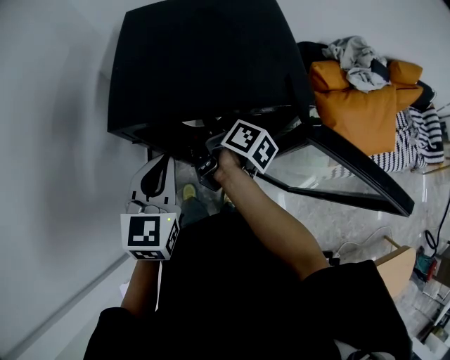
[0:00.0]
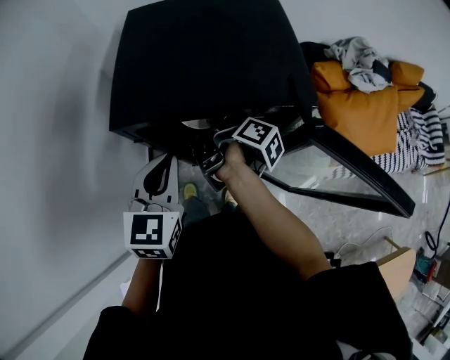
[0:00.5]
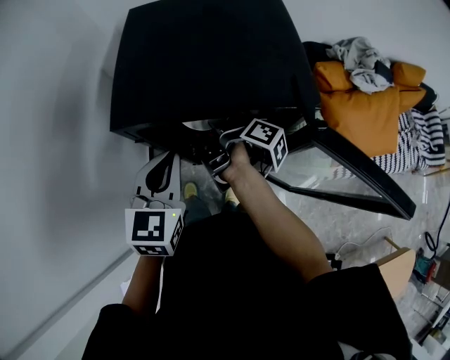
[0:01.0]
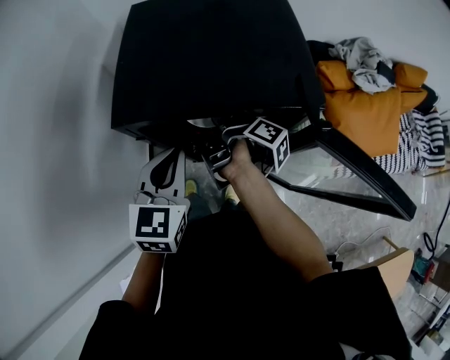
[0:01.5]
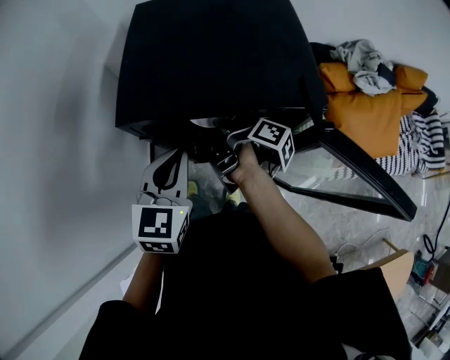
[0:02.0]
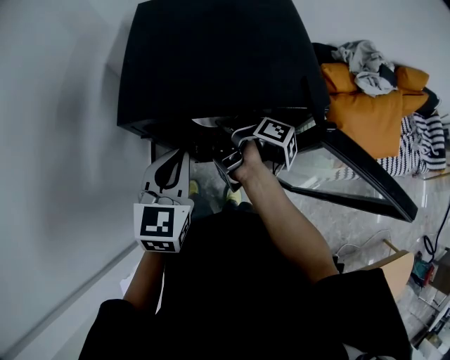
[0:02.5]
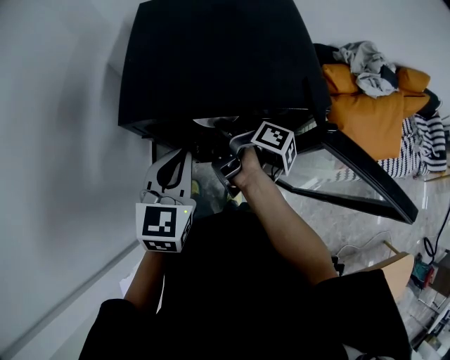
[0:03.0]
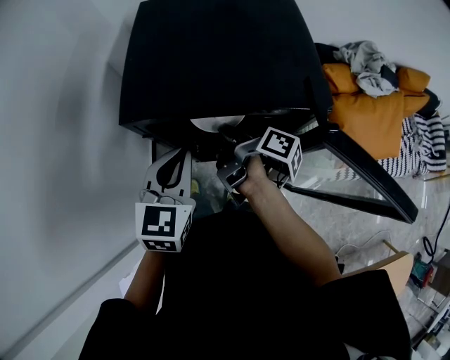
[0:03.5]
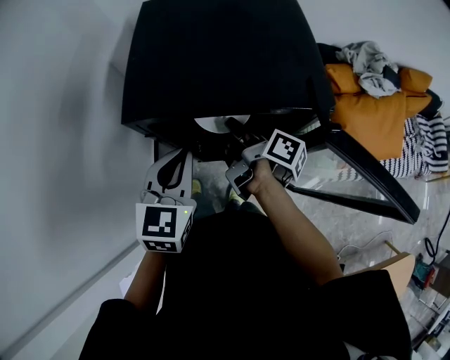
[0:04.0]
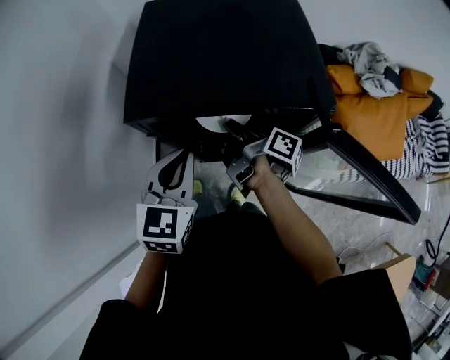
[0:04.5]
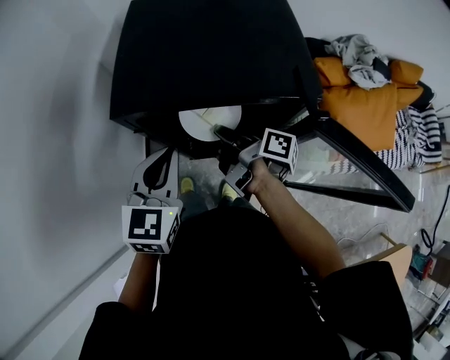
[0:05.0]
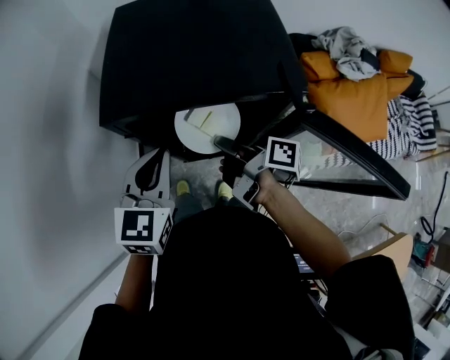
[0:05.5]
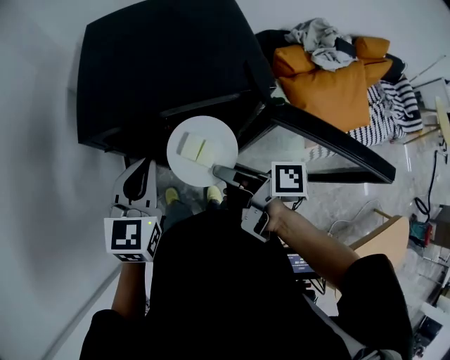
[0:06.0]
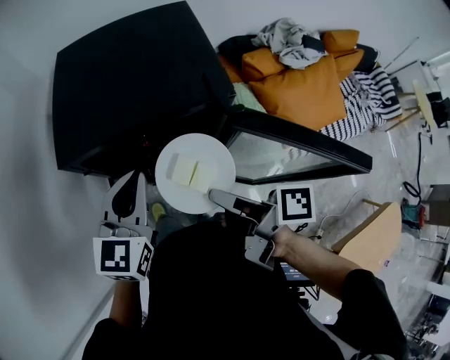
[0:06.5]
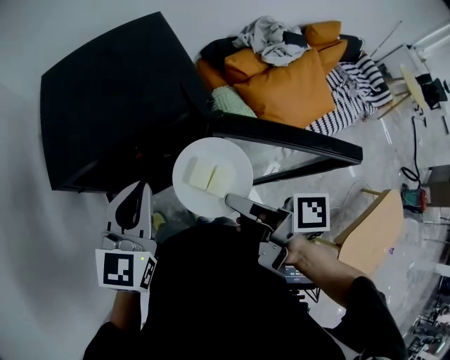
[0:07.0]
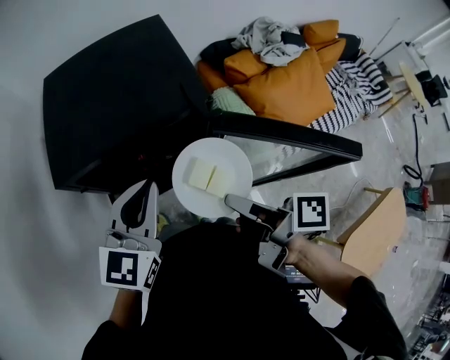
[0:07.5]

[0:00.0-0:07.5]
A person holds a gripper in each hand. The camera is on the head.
0:00.0 to 0:02.0: The right gripper rotates approximately 20 degrees.
0:02.0 to 0:04.0: The grippers stay close to where they were, moving slightly.
0:04.0 to 0:05.5: The right gripper goes about 5 cm backward.
0:05.5 to 0:07.5: The left gripper is displaced to the right and upward by some 10 cm, and swivels some 20 degrees. The right gripper is displaced backward, upward and to the right by roughly 20 cm.

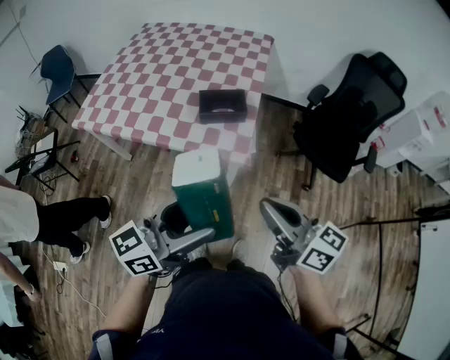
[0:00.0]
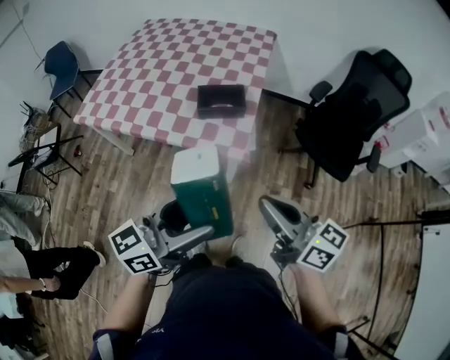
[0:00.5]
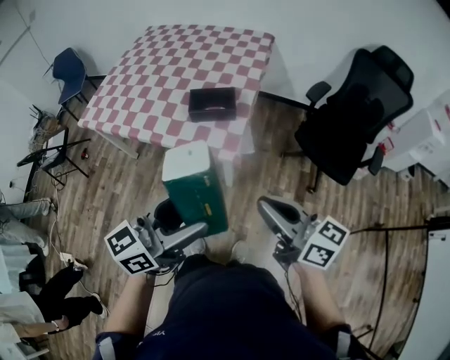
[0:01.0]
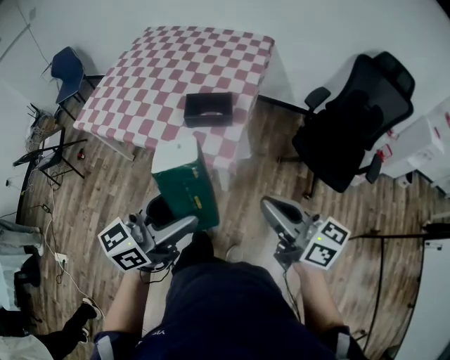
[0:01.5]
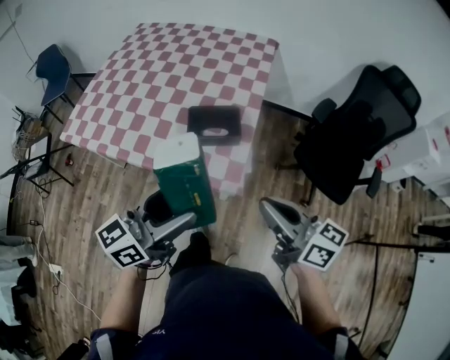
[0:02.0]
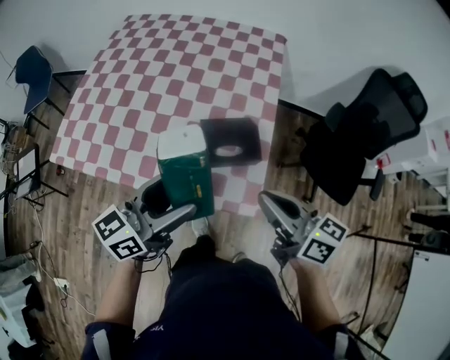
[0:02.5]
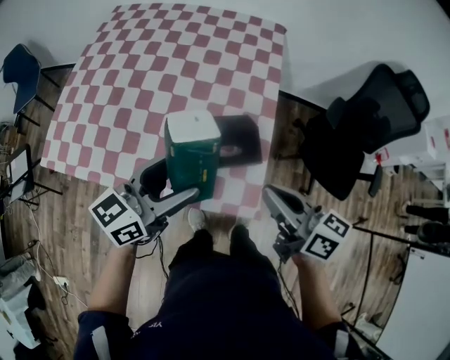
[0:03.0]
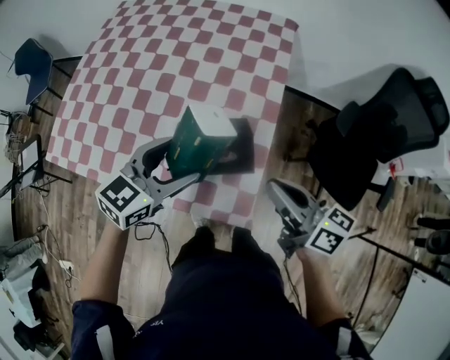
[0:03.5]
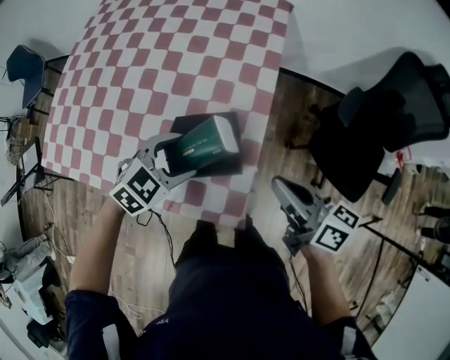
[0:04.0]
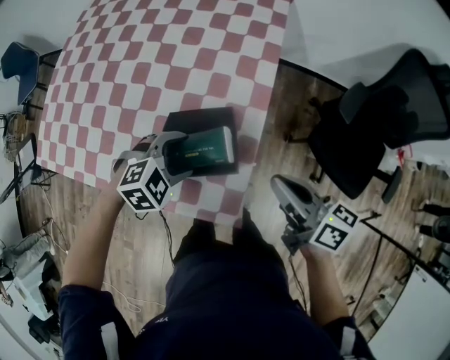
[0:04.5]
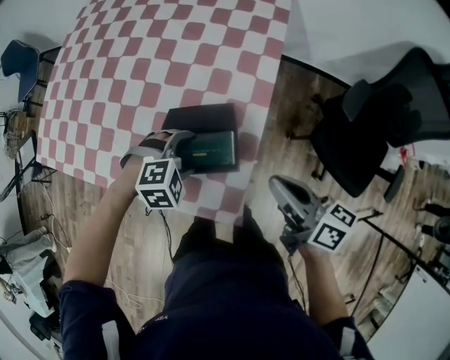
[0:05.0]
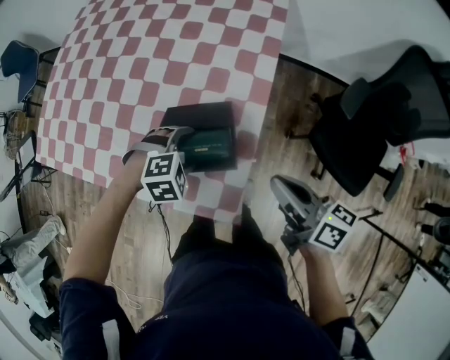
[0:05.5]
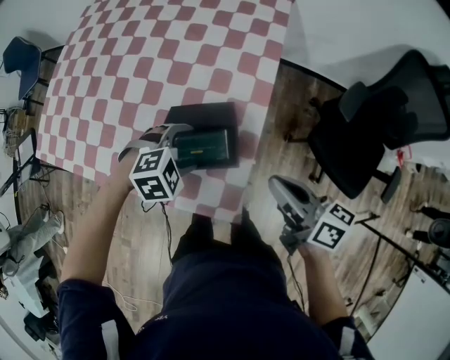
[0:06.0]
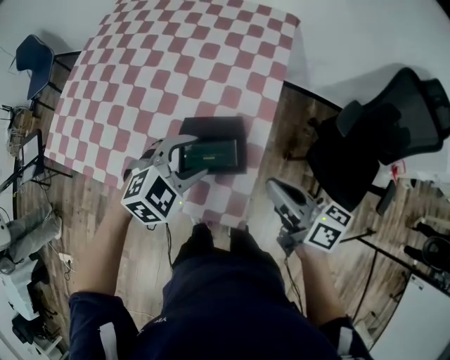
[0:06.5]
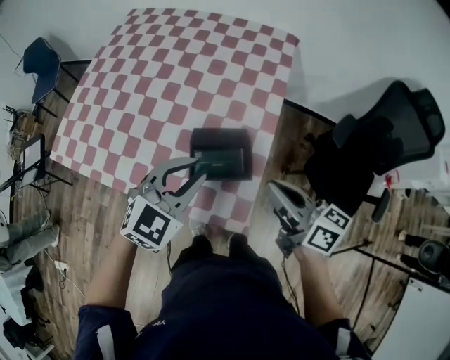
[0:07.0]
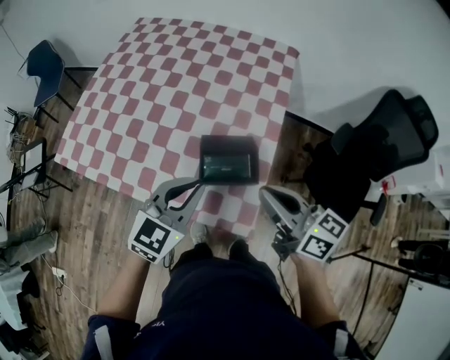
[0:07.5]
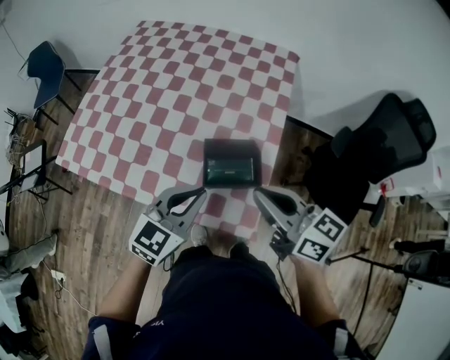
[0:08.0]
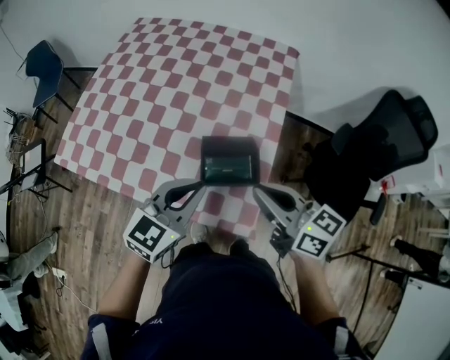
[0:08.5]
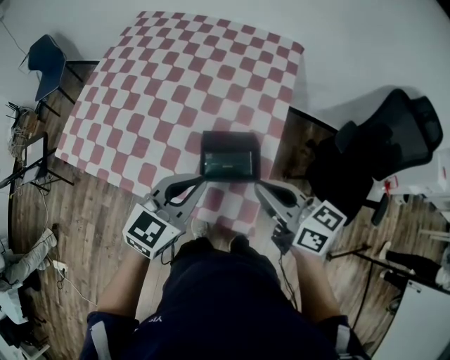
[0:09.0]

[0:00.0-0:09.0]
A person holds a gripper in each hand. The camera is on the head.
0:00.0 to 0:02.0: The grippers both shift forward by roughly 15 cm.
0:02.0 to 0:04.5: Both grippers move forward and downward, about 35 cm. The left gripper angles its fingers downward, by about 60 degrees.
0:04.5 to 0:07.0: The left gripper travels upward by about 15 cm, tilts its fingers about 30 degrees upward, and closes up, while the right gripper heads upward and to the left, covering some 10 cm.
0:07.0 to 0:09.0: The right gripper is displaced to the left by approximately 5 cm; the left gripper changes its angle by some 20 degrees.

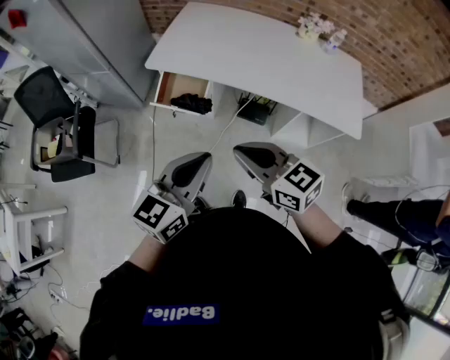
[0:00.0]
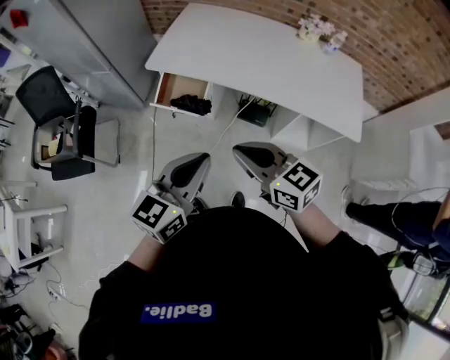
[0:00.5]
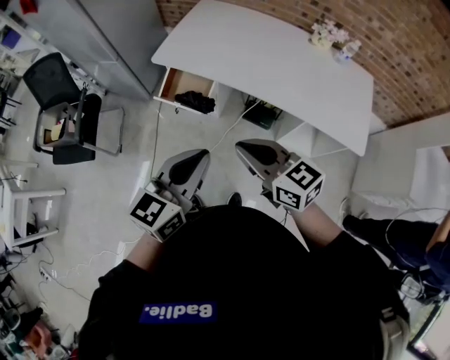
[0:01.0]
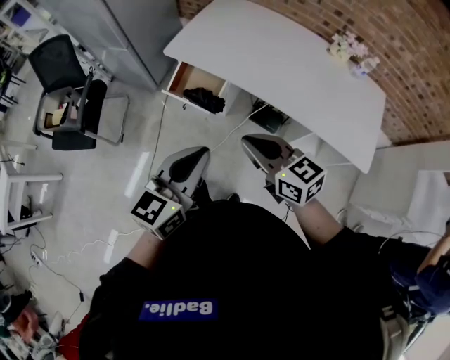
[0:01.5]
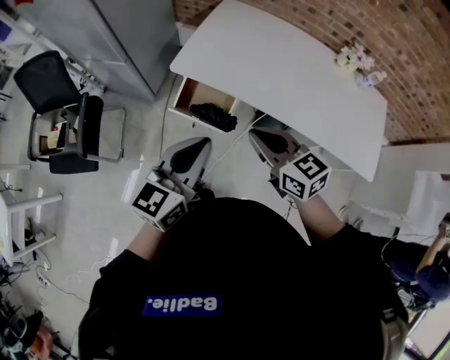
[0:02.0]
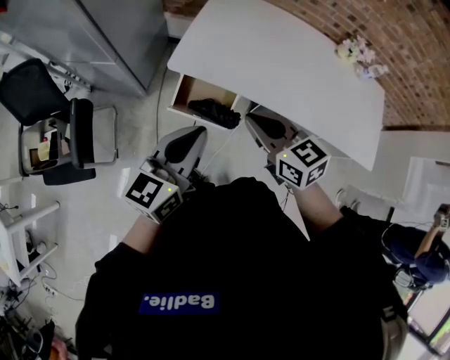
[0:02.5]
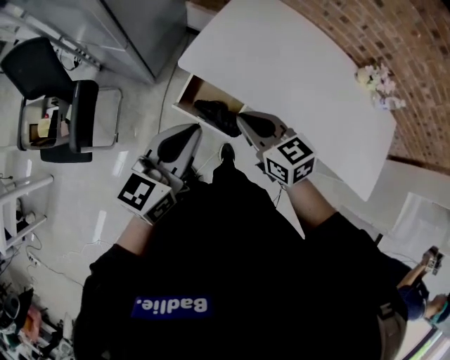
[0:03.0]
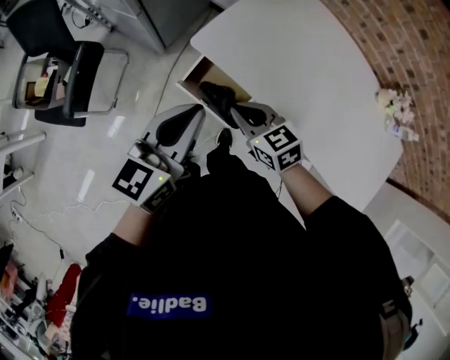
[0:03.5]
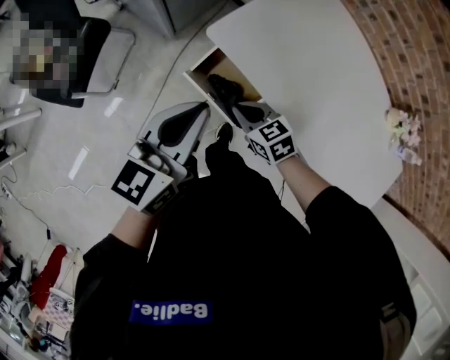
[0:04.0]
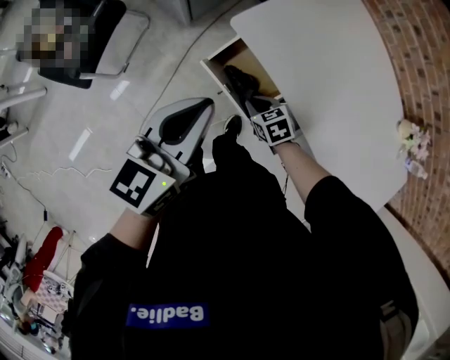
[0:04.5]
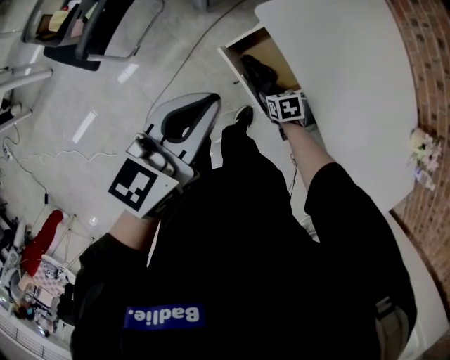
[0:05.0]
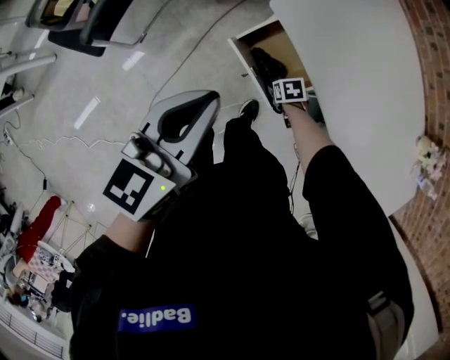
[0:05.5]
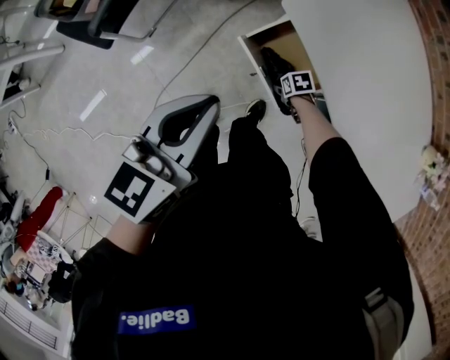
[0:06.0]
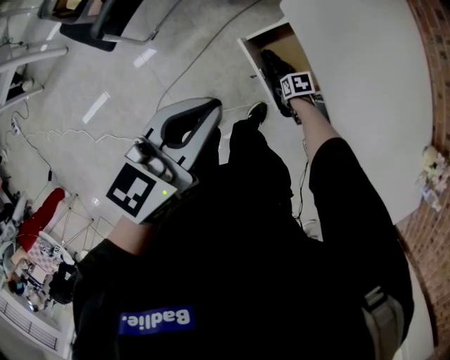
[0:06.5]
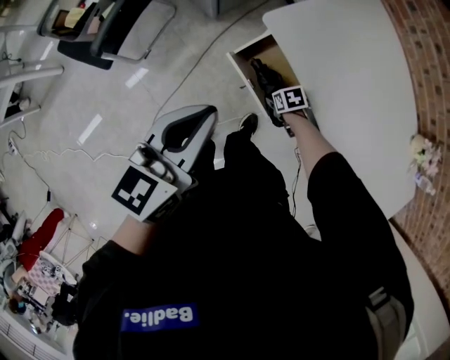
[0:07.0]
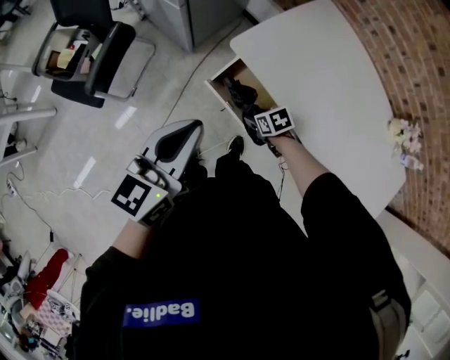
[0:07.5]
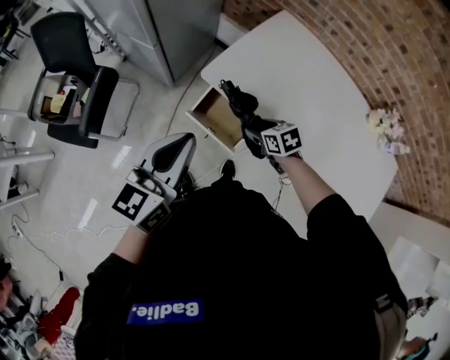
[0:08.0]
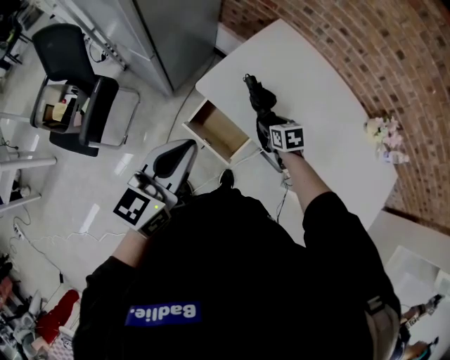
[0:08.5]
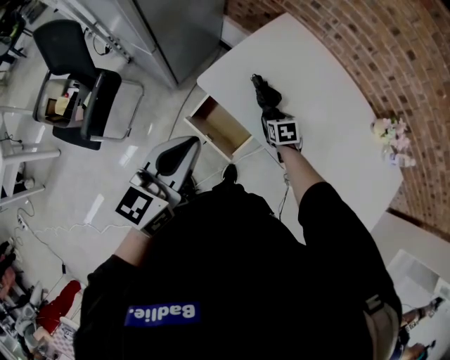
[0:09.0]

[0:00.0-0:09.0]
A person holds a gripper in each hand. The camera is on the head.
0:00.0 to 0:02.0: The left gripper travels forward and to the left by roughly 20 cm. Meanwhile the right gripper moves forward, some 20 cm.
0:02.0 to 0:04.5: The left gripper shifts by some 20 cm, and turns by about 30 degrees, while the right gripper travels downward by about 35 cm, and tips its fingers downward by roughly 40 degrees.
0:04.5 to 0:07.0: The left gripper moves approximately 5 cm. Meanwhile the right gripper travels downward by approximately 10 cm, turns by about 20 degrees, and opens up.
0:07.0 to 0:09.0: The left gripper ends up about 15 cm from where it was. Meanwhile the right gripper heads upward, covering roughly 20 cm, and turns by about 30 degrees.

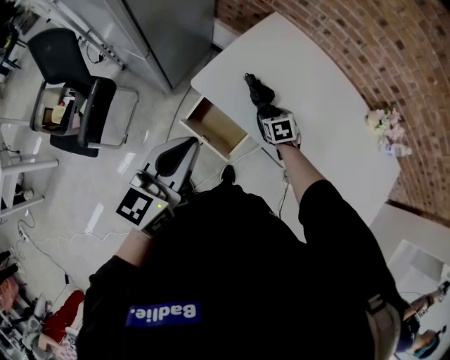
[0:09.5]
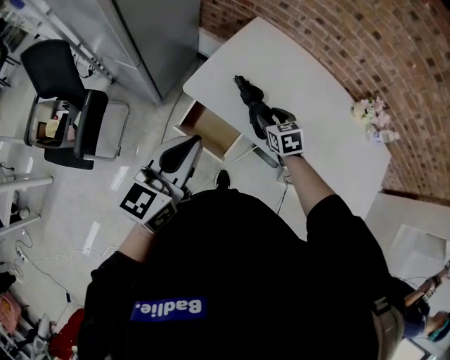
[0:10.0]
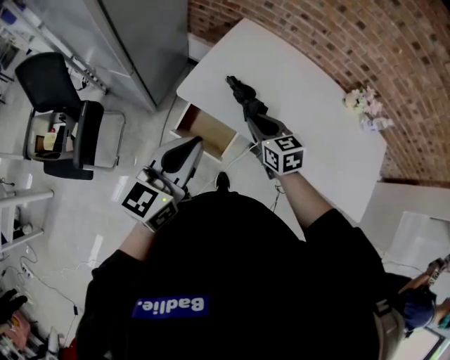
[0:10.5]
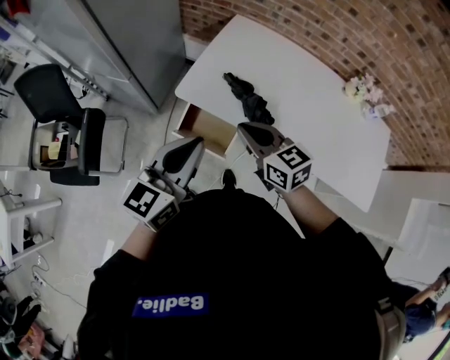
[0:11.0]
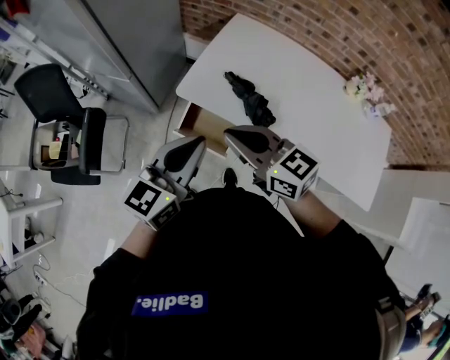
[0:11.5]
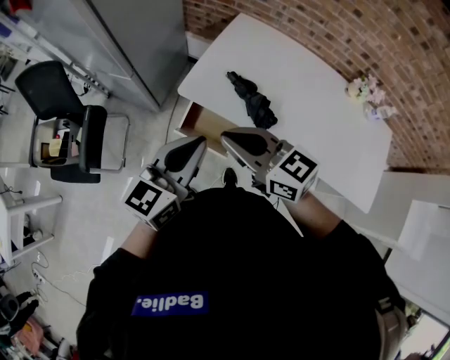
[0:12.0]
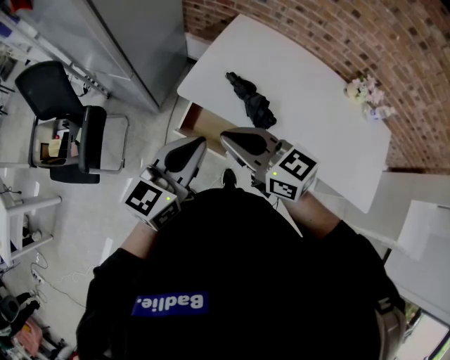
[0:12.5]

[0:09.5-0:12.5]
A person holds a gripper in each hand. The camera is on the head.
0:09.5 to 0:11.0: The right gripper heads upward and backward, covering roughly 30 cm, angles its fingers upward, by some 40 degrees, and closes up.
0:11.0 to 0:12.5: The right gripper goes roughly 10 cm upward and to the left.
